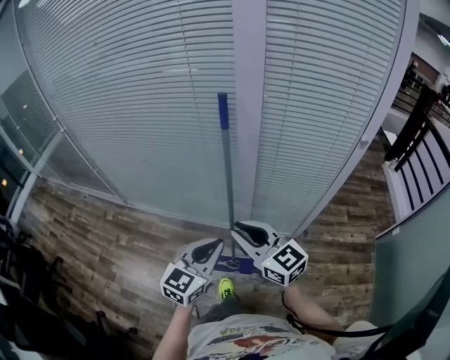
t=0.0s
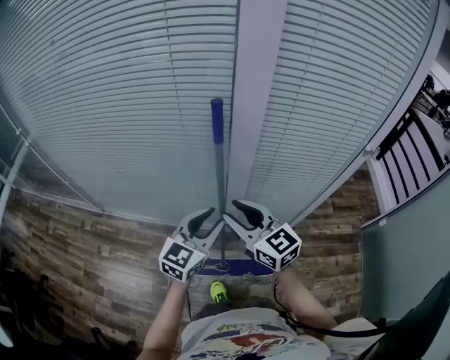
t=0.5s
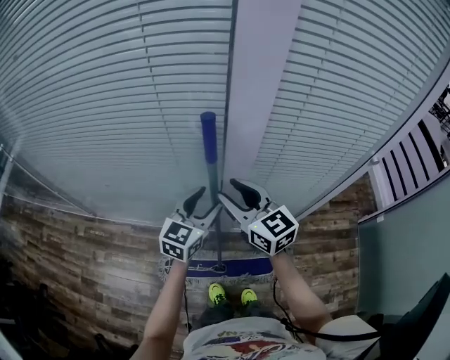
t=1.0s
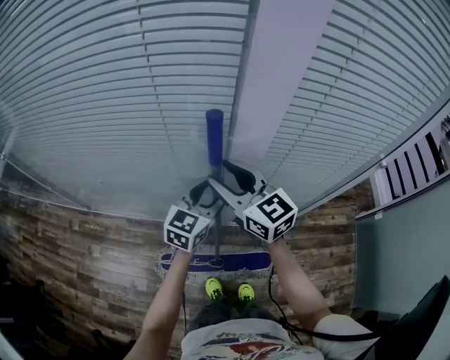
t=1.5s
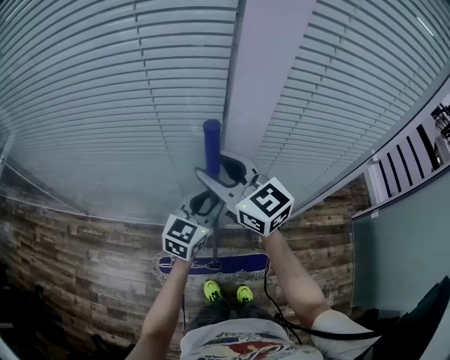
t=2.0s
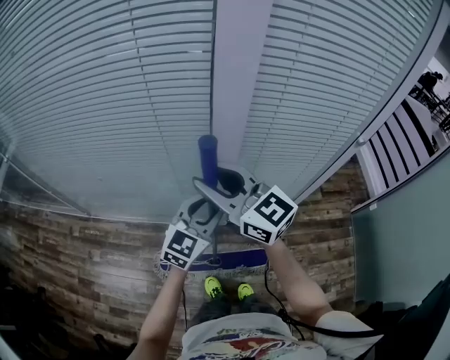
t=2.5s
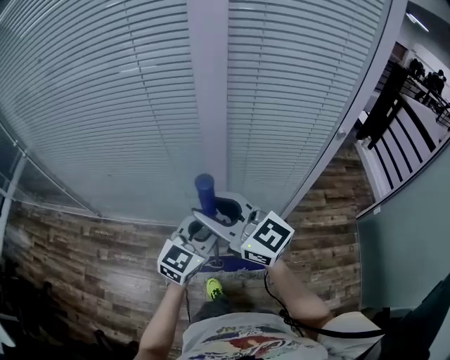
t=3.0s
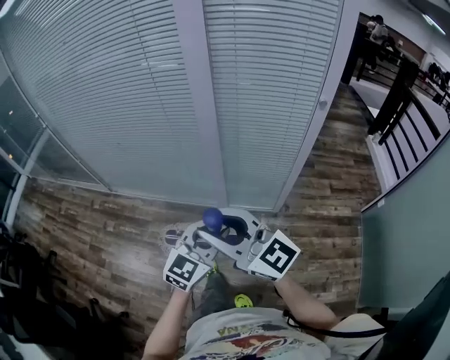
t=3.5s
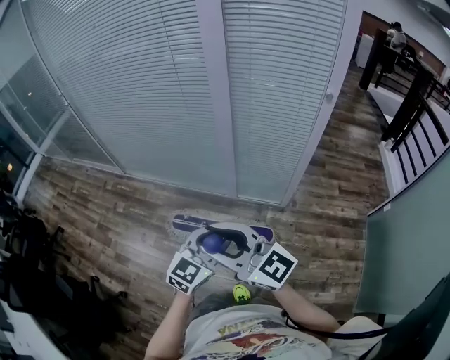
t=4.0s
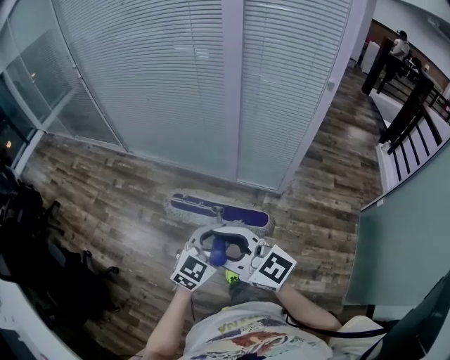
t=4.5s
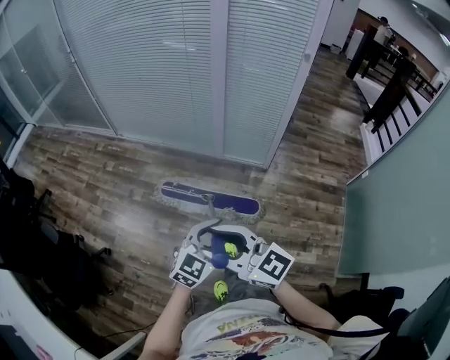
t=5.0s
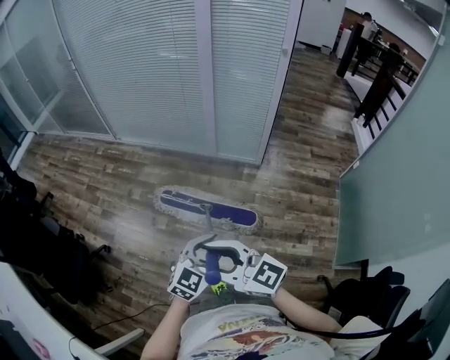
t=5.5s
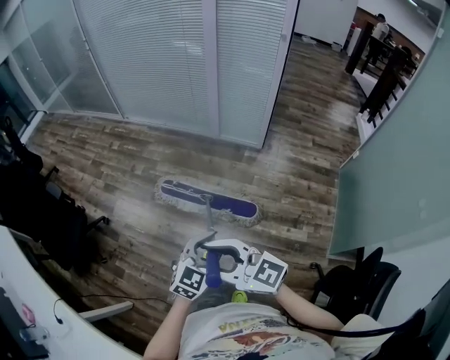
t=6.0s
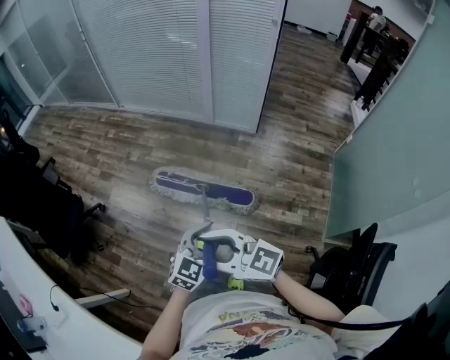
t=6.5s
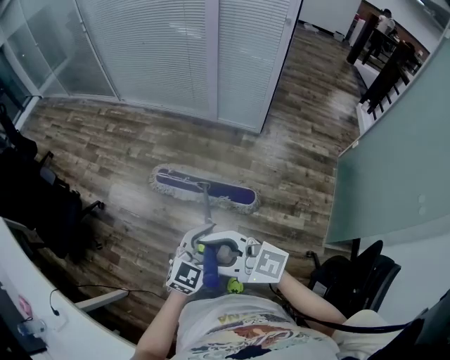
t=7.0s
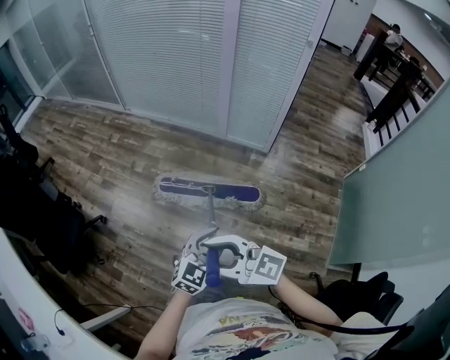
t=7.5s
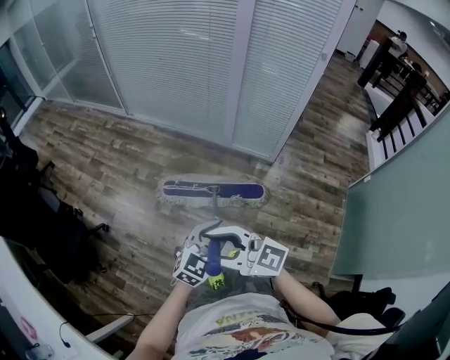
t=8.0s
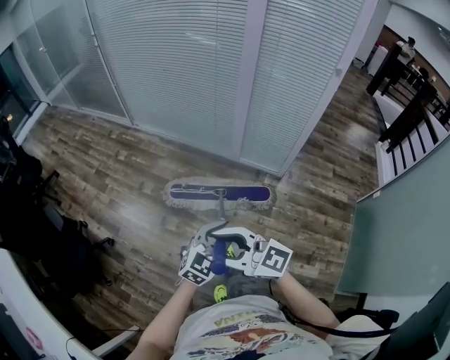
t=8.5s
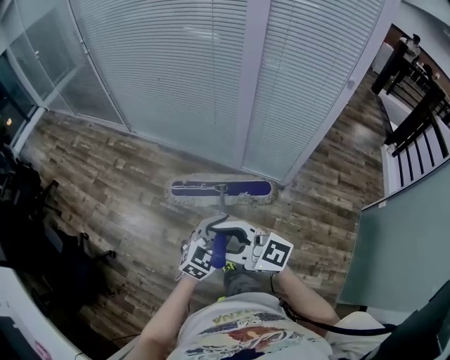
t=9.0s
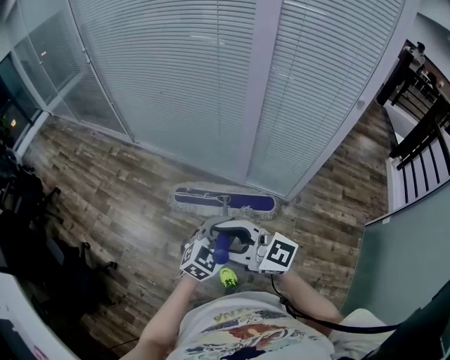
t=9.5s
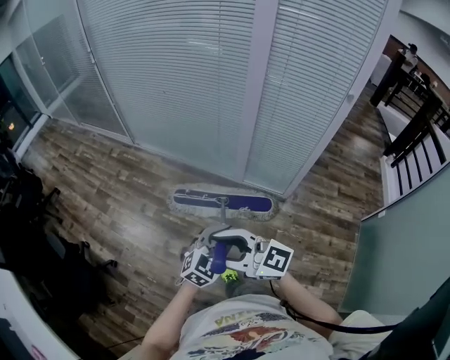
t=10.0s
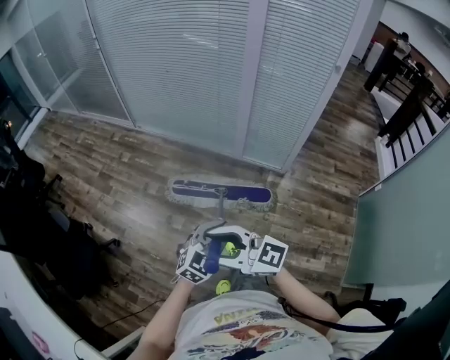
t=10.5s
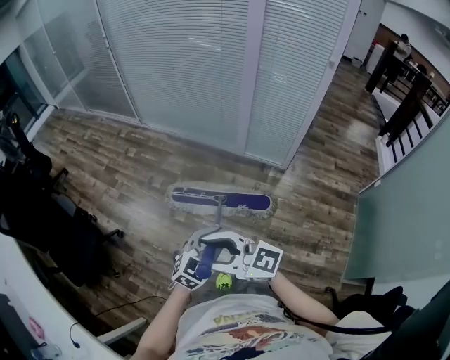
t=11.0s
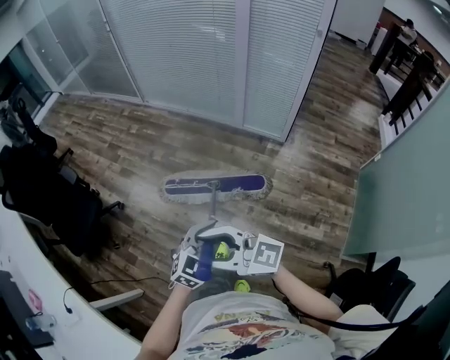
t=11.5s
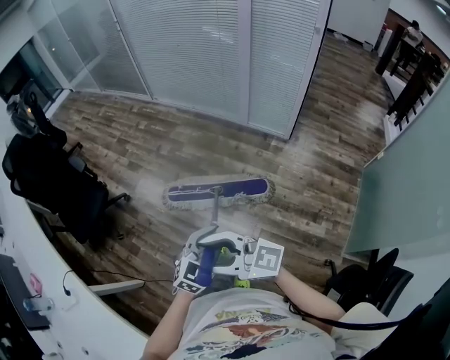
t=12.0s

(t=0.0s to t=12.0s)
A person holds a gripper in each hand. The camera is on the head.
t=0.0s - t=2.0s: Both grippers travel together forward, roughly 30 cm. The right gripper opens. The left gripper opens.
t=2.0s - t=4.0s: Both grippers are carried backward, roughly 60 cm. The right gripper changes its angle by approximately 30 degrees.
t=4.0s - t=6.0s: Both grippers are carried backward, about 70 cm.
t=6.0s - t=8.0s: The grippers both shift forward by about 25 cm.
t=8.0s - t=10.0s: Both grippers travel together forward, roughly 30 cm.
t=10.0s - t=12.0s: The pair of grippers is taken backward, roughly 60 cm.

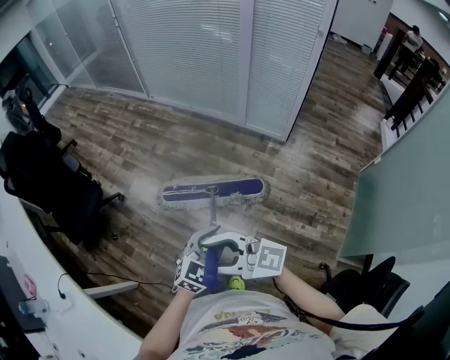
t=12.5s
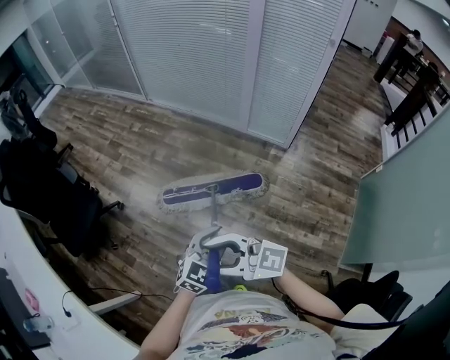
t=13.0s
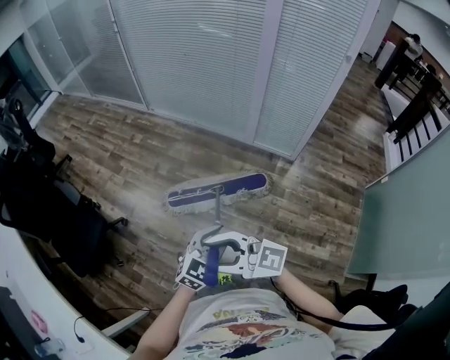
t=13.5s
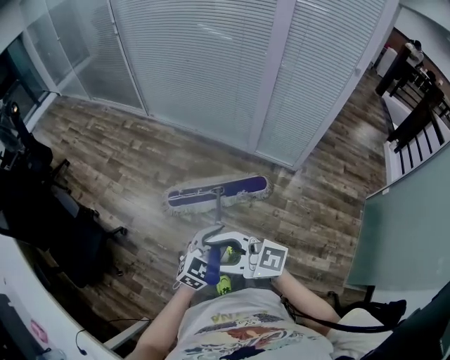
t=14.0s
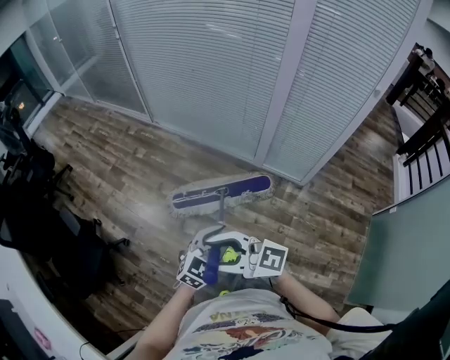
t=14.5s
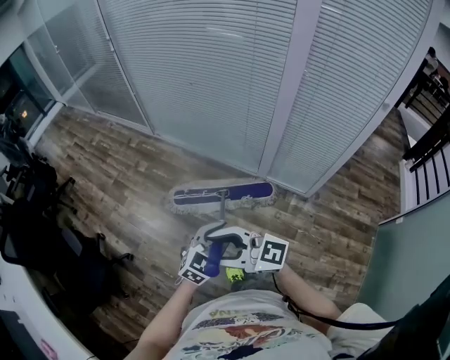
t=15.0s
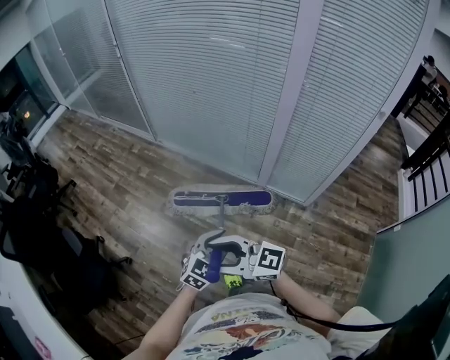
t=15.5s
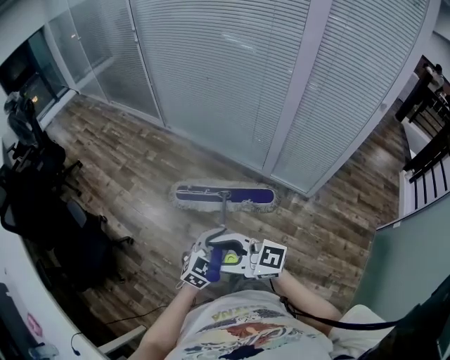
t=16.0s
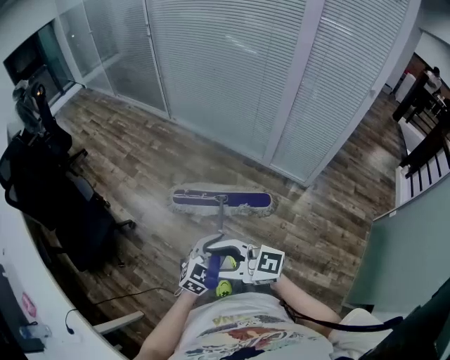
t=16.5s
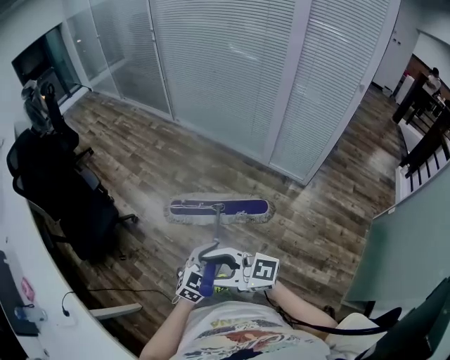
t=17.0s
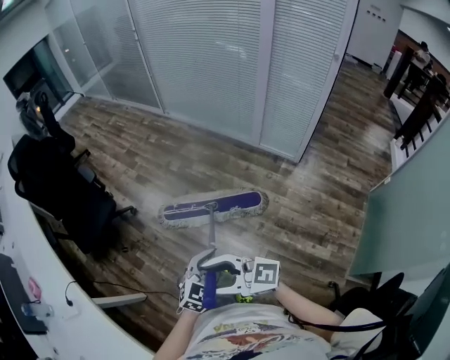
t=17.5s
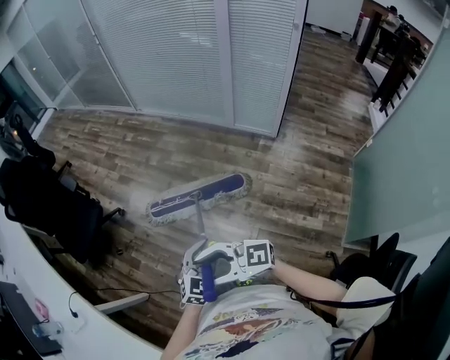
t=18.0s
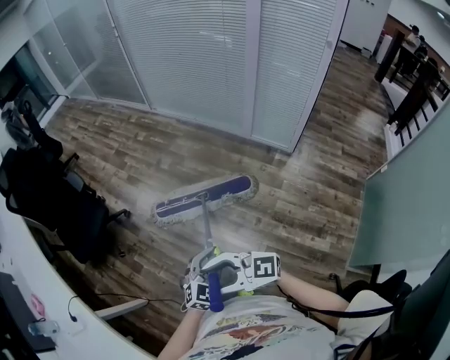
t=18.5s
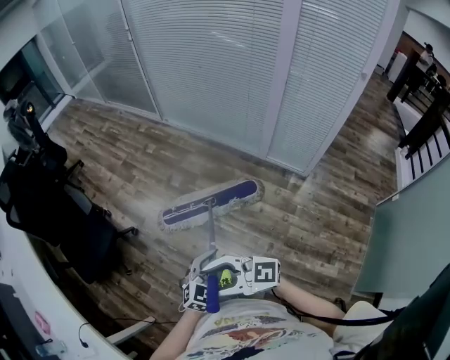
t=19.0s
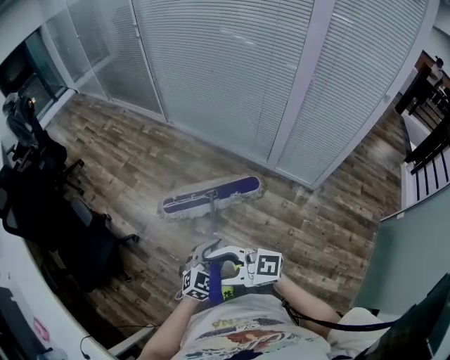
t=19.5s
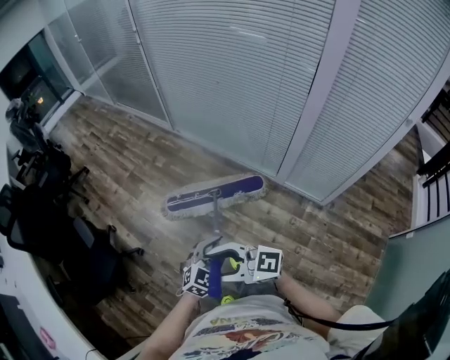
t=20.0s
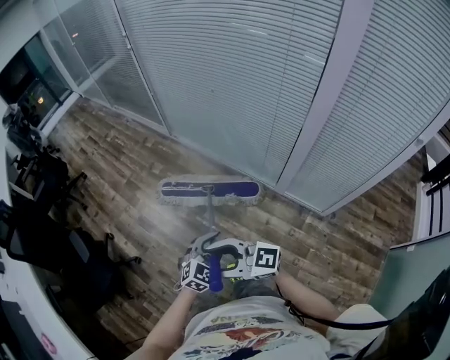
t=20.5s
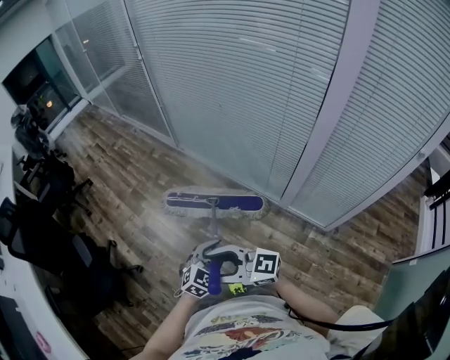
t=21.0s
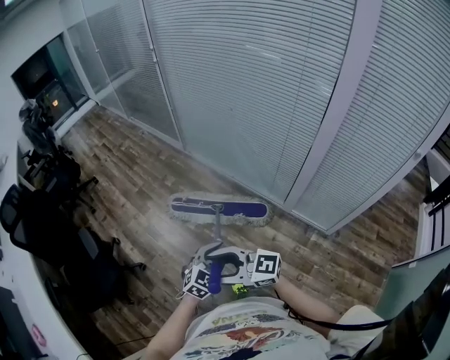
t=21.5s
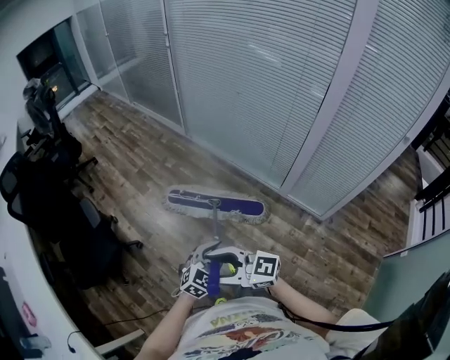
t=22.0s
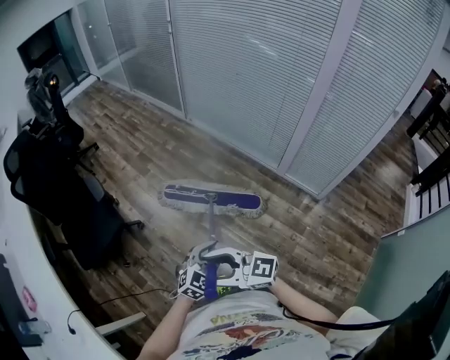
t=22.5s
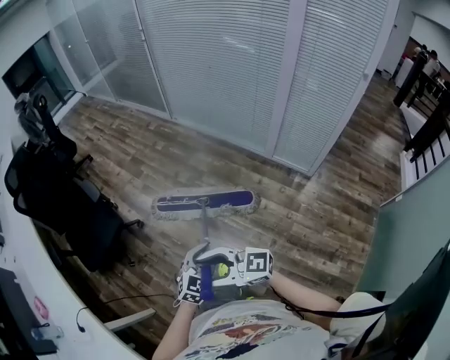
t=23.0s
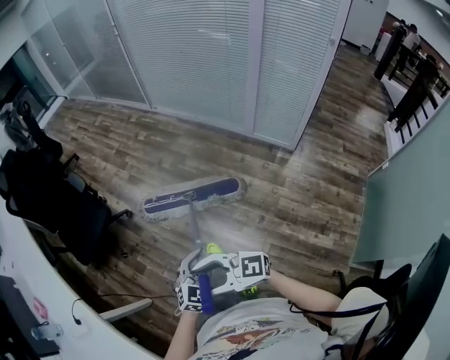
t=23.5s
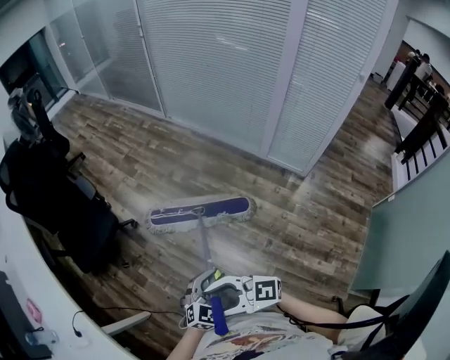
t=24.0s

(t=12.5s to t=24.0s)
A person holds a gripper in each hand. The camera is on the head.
t=12.5s - t=14.5s: The pair of grippers is taken forward, about 50 cm.
t=14.5s - t=16.5s: The two grippers go about 20 cm backward and to the left.
t=16.5s - t=18.5s: Both grippers travel together backward, approximately 25 cm.
t=18.5s - t=20.0s: The two grippers travel together, forward, approximately 60 cm.
t=20.0s - t=22.0s: The grippers both shift to the left and backward by approximately 10 cm.
t=22.0s - t=24.0s: The right gripper changes place by roughly 40 cm; the left gripper ends up roughly 40 cm from where it was.

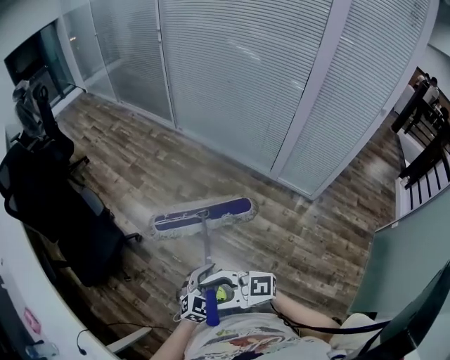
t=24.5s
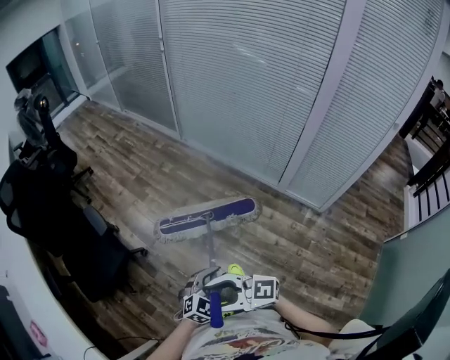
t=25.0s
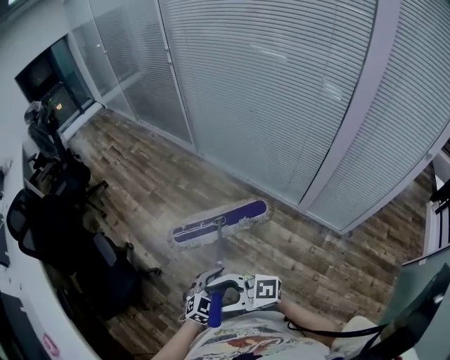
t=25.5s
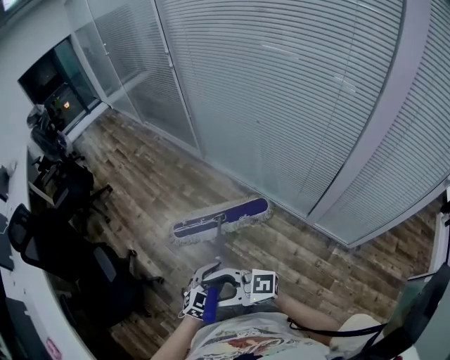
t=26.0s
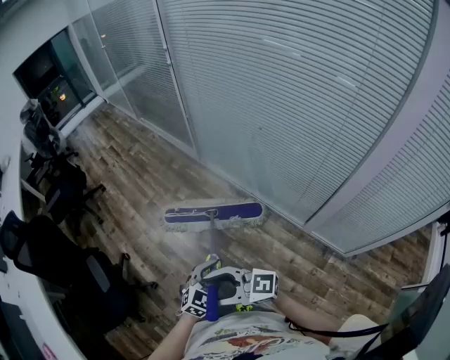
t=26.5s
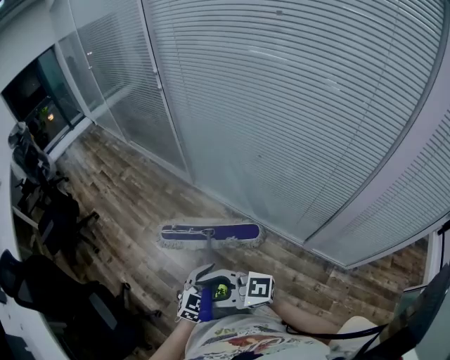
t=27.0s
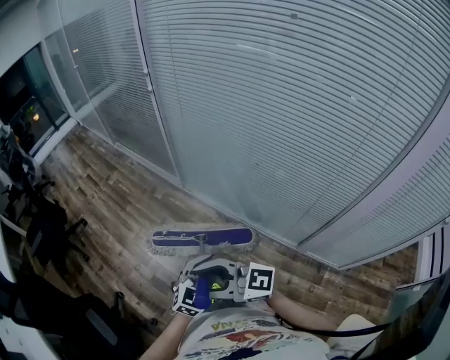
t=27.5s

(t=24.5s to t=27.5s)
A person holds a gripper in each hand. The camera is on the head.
t=24.5s - t=26.0s: Both grippers are carried approximately 50 cm.
t=26.0s - t=27.5s: The left gripper moves roughly 35 cm; the right gripper changes place by roughly 35 cm.

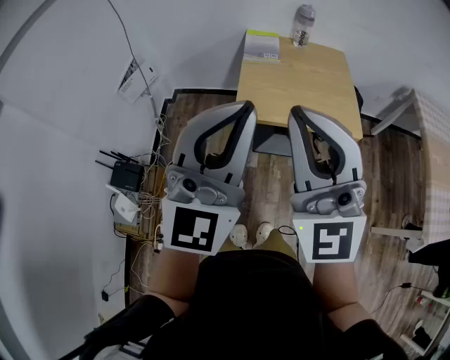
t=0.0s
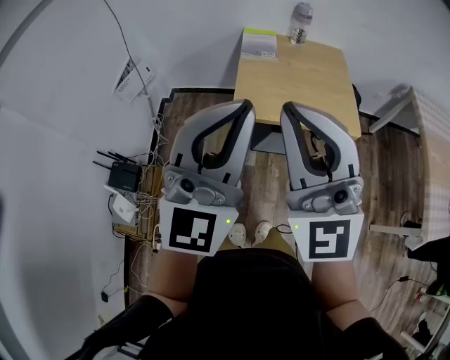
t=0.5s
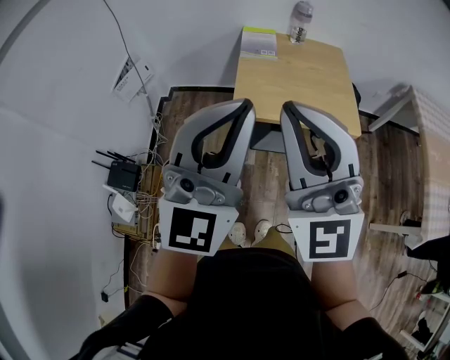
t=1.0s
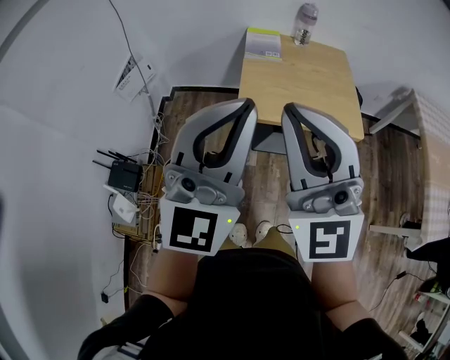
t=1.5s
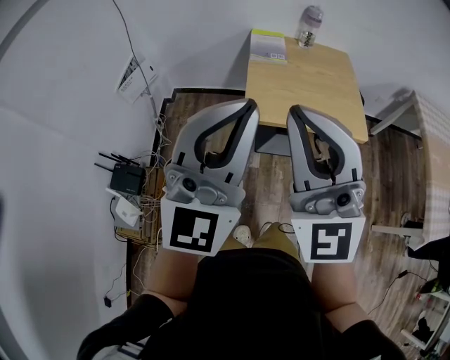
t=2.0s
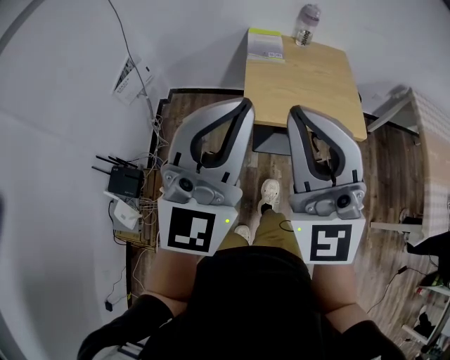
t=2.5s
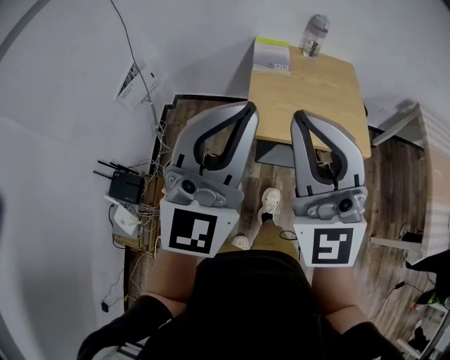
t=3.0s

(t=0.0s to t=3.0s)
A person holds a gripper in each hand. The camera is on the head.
t=0.0s - t=1.5s: The grippers make only small movements.
t=1.5s - t=3.0s: Both grippers travel together forward, roughly 5 cm.
